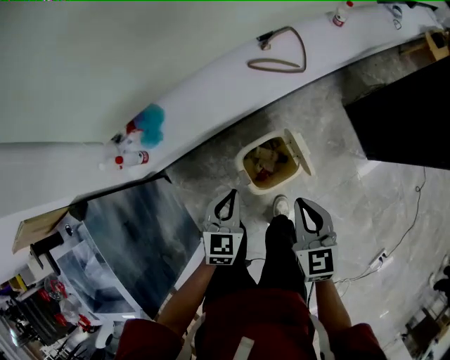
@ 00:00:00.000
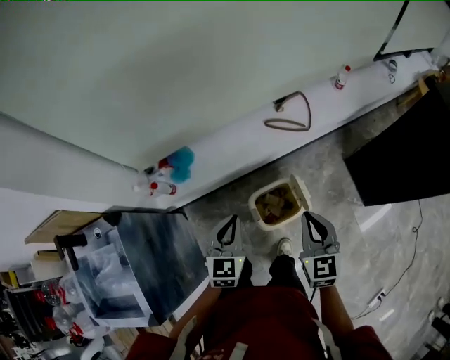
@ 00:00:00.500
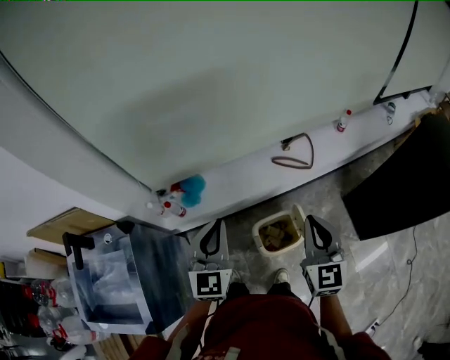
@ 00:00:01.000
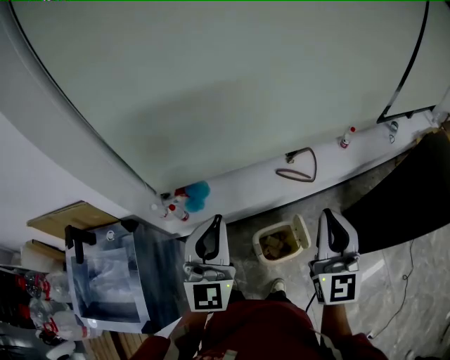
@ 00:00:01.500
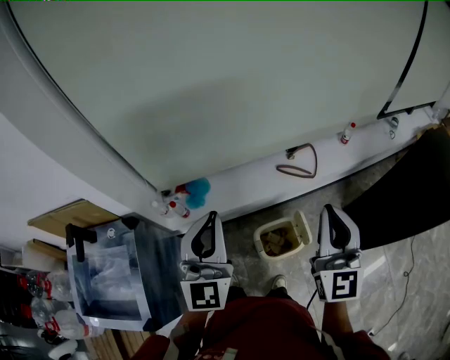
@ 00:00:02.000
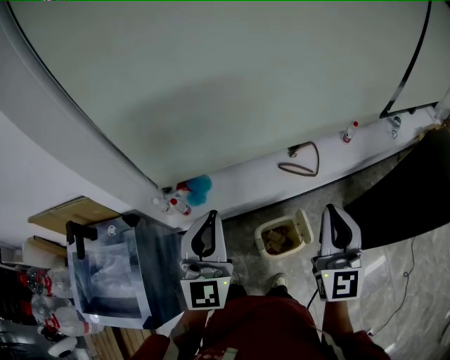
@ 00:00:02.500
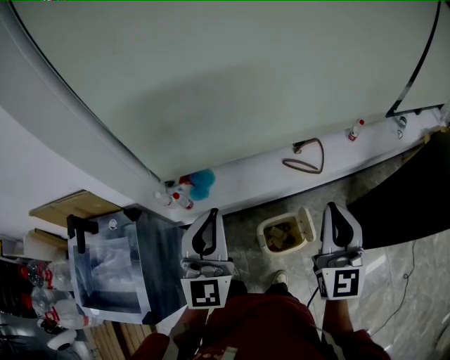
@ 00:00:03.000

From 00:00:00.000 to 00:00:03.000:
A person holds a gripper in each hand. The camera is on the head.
From 00:00:00.000 to 00:00:01.500: The grippers both shift upward by some 40 cm. The right gripper tips its fingers upward by roughly 40 degrees; the left gripper points its fingers approximately 40 degrees further upward.
From 00:00:01.500 to 00:00:03.000: The grippers move only a little.

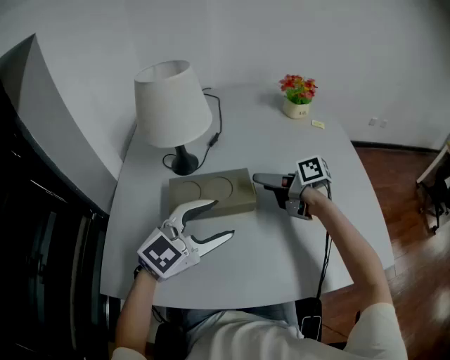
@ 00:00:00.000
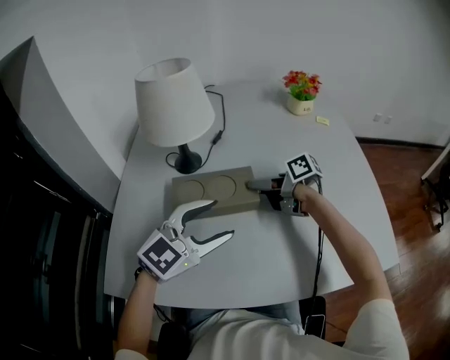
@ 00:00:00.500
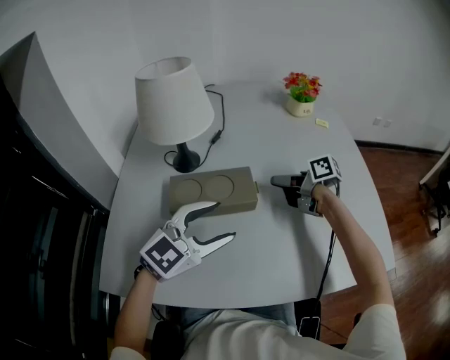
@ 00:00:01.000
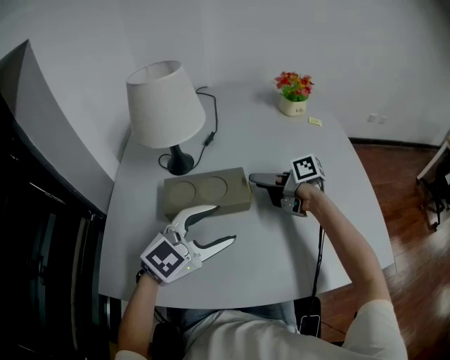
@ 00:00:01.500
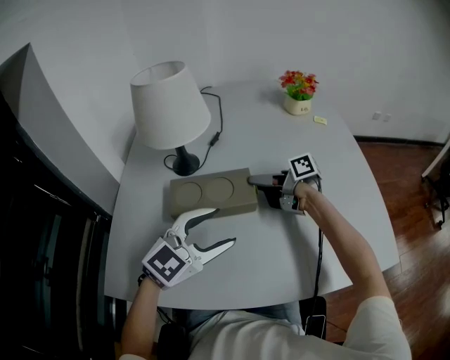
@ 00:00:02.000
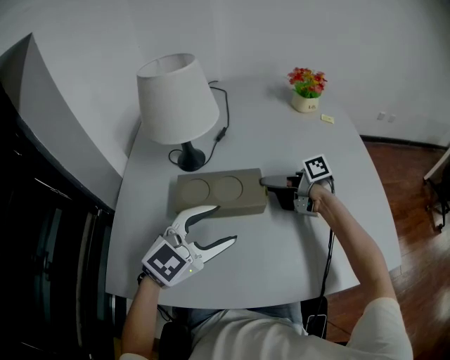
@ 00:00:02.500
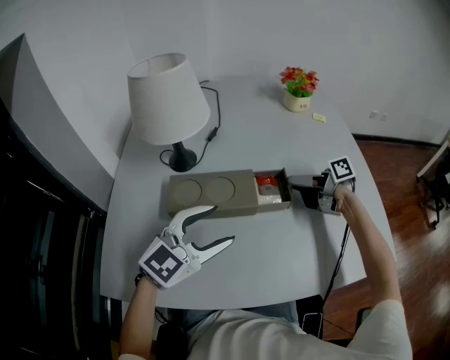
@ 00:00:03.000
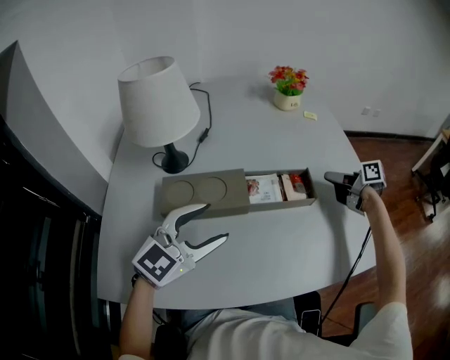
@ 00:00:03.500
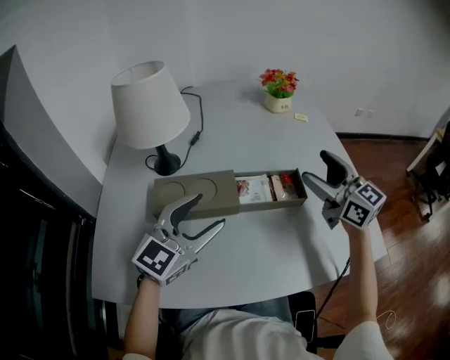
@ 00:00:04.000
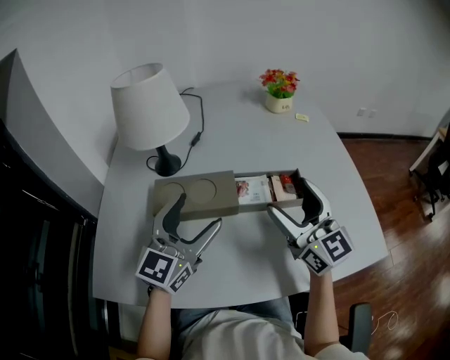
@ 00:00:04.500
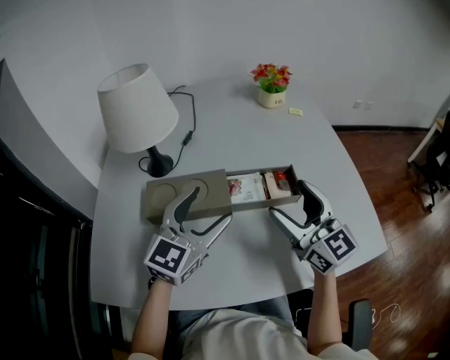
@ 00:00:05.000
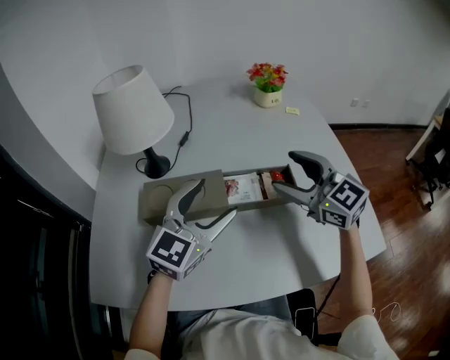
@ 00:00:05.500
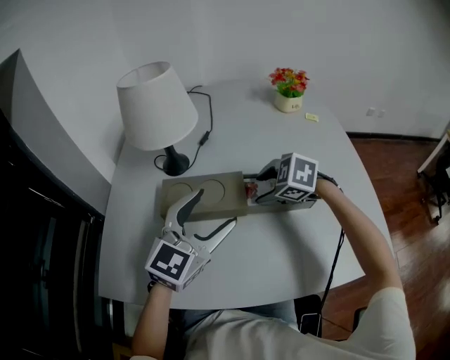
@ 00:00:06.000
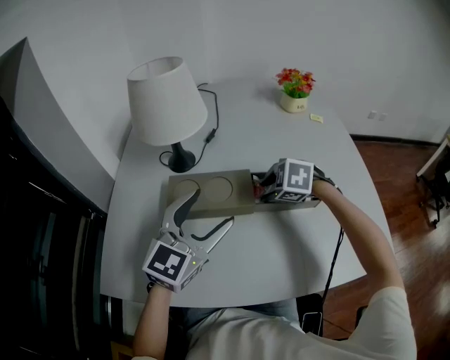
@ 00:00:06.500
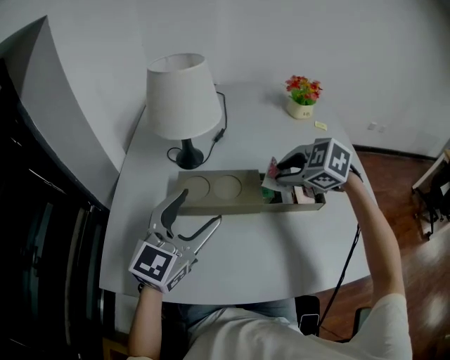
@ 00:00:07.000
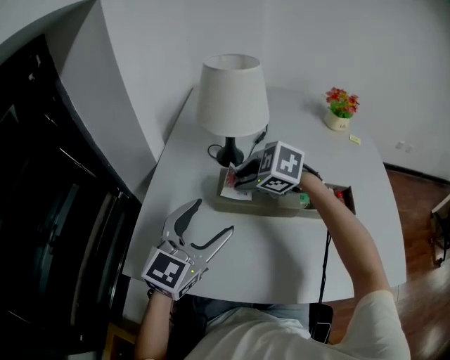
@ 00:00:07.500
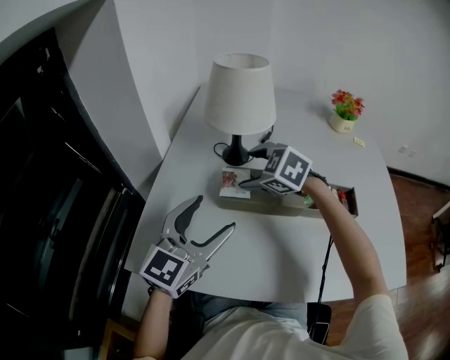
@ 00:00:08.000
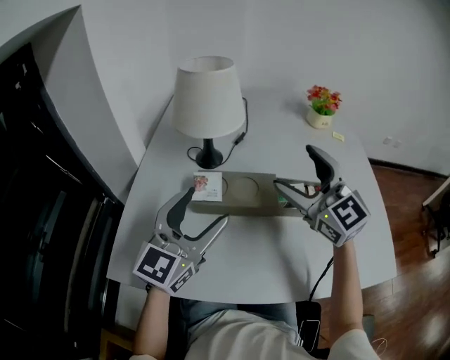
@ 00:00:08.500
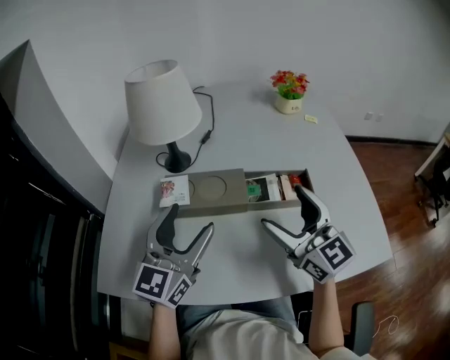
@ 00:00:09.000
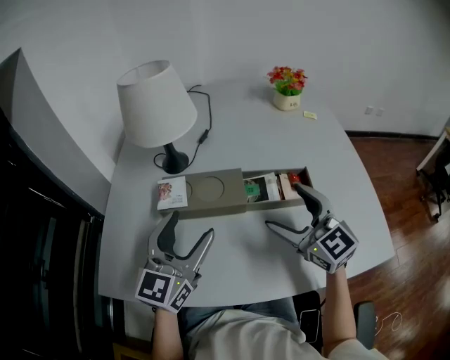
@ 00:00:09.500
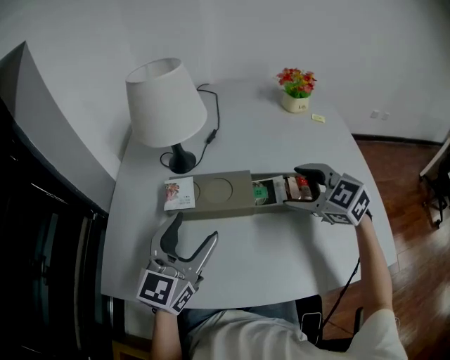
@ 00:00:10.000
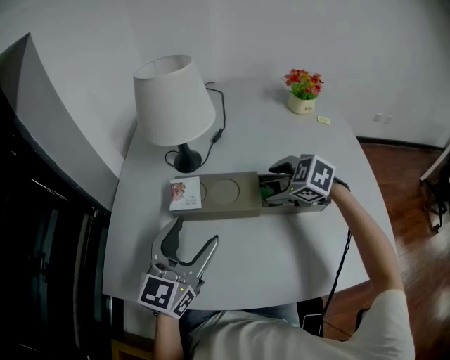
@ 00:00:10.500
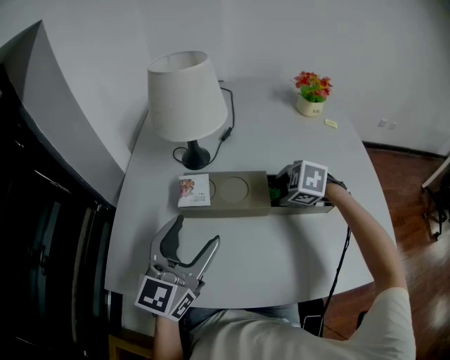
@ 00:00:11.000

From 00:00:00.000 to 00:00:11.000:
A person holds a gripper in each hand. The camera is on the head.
From 00:00:00.000 to 00:00:02.000: The right gripper closes.
From 00:00:02.000 to 00:00:03.500: The right gripper moves to the right, approximately 30 cm, and rotates roughly 30 degrees.
From 00:00:03.500 to 00:00:05.500: The left gripper travels to the right by approximately 5 cm; the right gripper goes roughly 20 cm to the left, upward and backward, rotates around the line of its fingers by approximately 70 degrees, counterclockwise from behind, and opens up.
From 00:00:05.500 to 00:00:07.500: The left gripper changes place by about 20 cm, while the right gripper moves approximately 30 cm, angles its fingers downward, by some 40 degrees, and closes its fingers.
From 00:00:07.500 to 00:00:09.000: The right gripper travels to the right, backward and upward by some 25 cm, points its fingers some 60 degrees further upward, and opens; the left gripper travels to the right by about 10 cm.
From 00:00:09.000 to 00:00:11.000: The right gripper travels downward and forward by roughly 20 cm, tips its fingers downward by roughly 70 degrees, and closes.

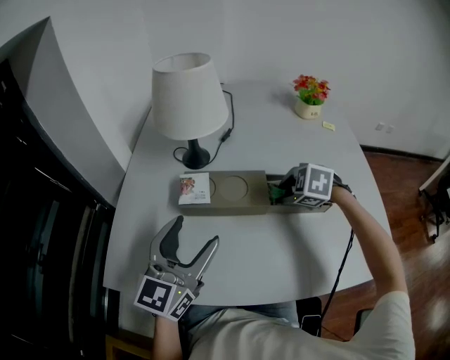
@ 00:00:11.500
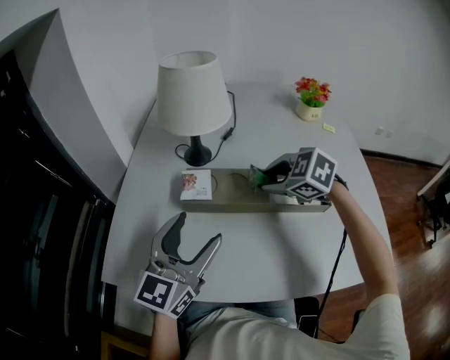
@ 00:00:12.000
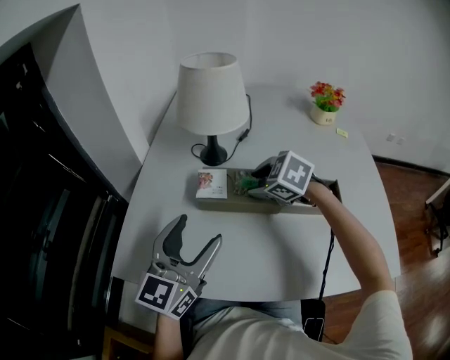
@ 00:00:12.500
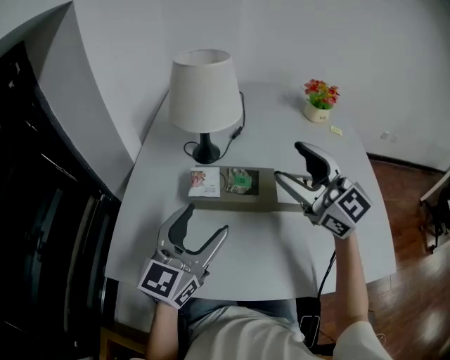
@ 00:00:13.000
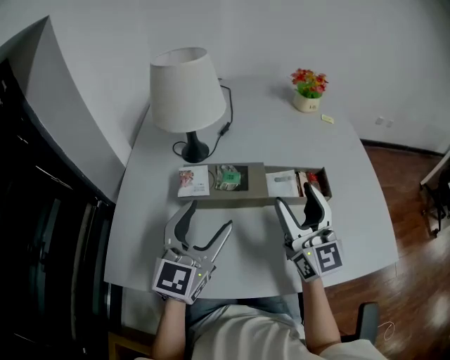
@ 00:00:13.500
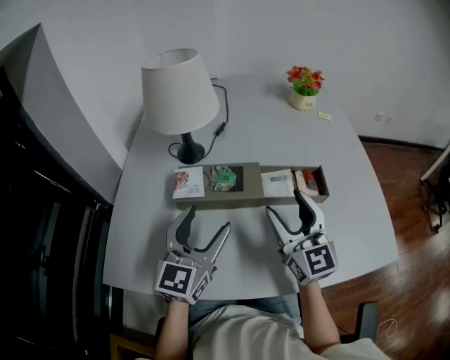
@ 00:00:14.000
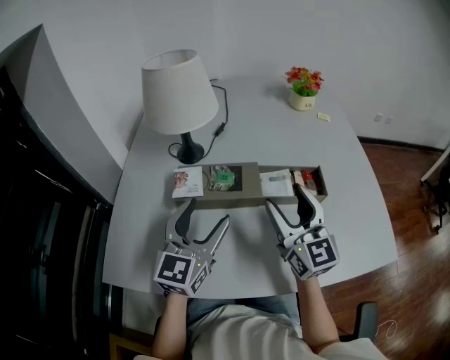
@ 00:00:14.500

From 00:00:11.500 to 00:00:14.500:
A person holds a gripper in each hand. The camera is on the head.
From 00:00:11.500 to 00:00:13.000: The right gripper goes approximately 20 cm upward, tips its fingers upward by about 70 degrees, and opens up.
From 00:00:13.000 to 00:00:14.500: The left gripper moves roughly 5 cm; the right gripper shifts roughly 10 cm downward and to the right, and turns by some 30 degrees.

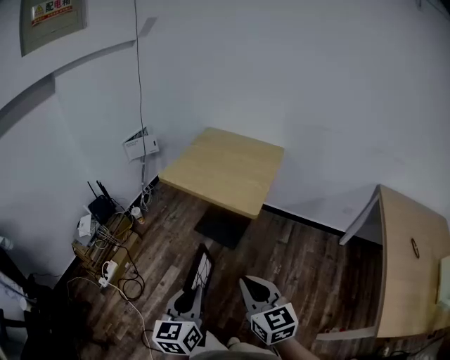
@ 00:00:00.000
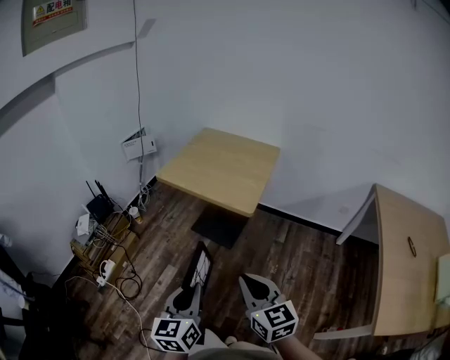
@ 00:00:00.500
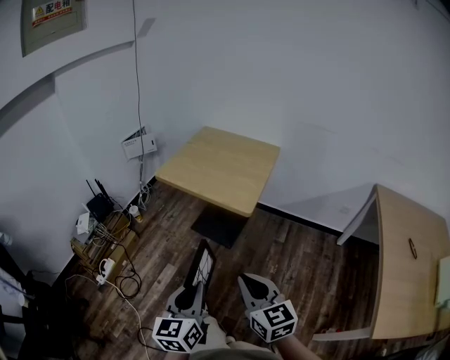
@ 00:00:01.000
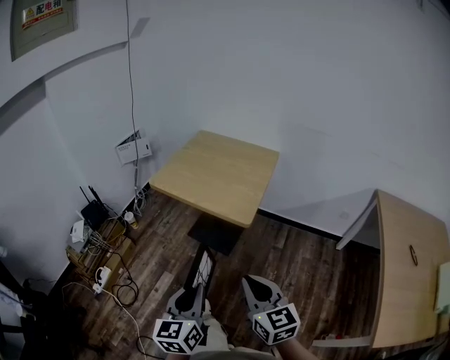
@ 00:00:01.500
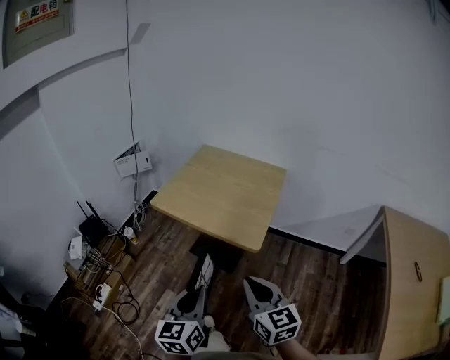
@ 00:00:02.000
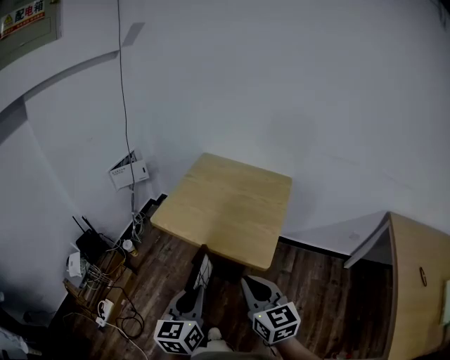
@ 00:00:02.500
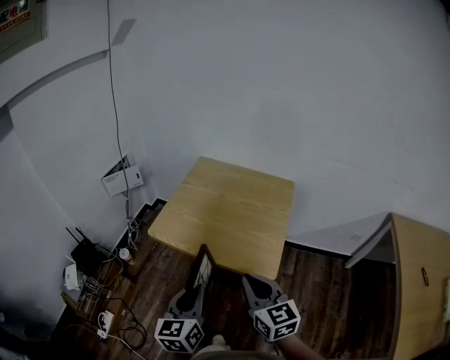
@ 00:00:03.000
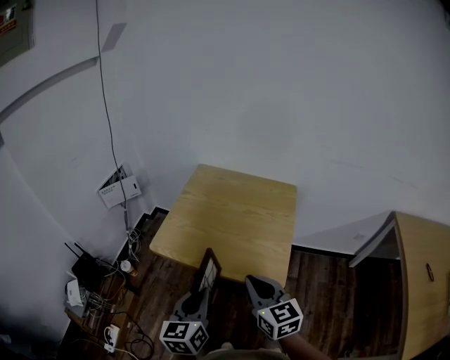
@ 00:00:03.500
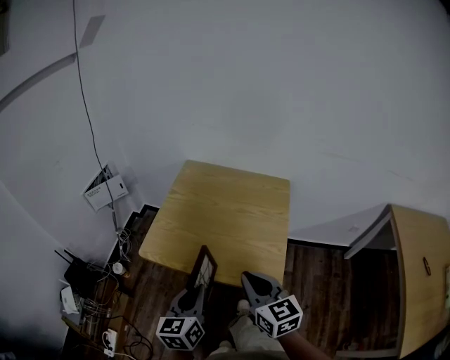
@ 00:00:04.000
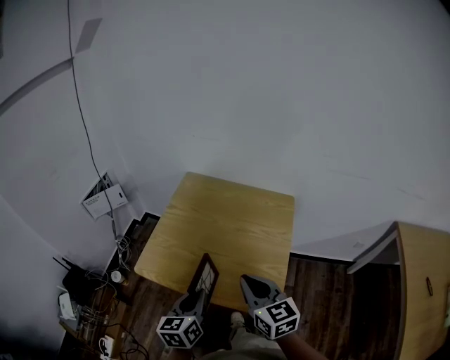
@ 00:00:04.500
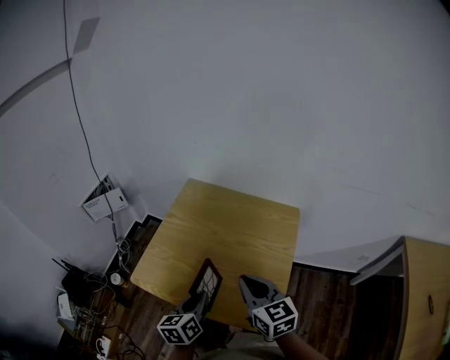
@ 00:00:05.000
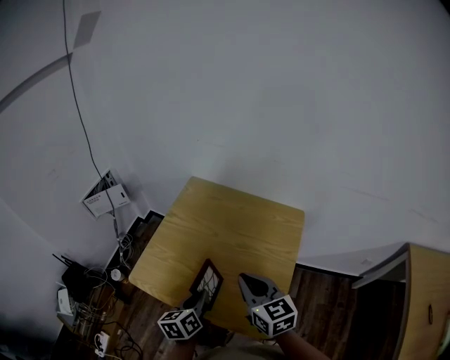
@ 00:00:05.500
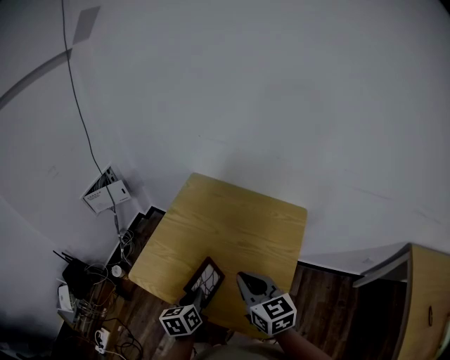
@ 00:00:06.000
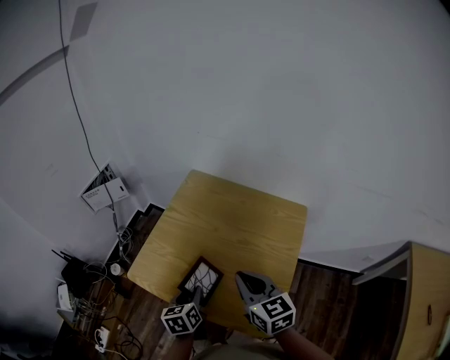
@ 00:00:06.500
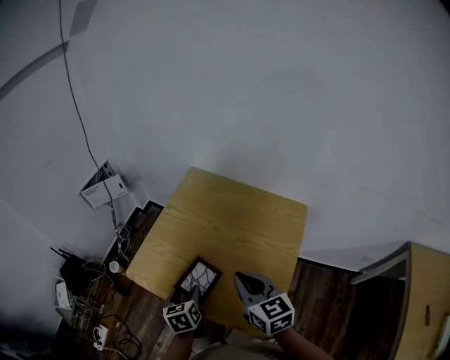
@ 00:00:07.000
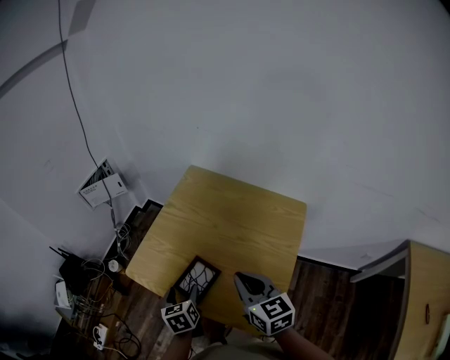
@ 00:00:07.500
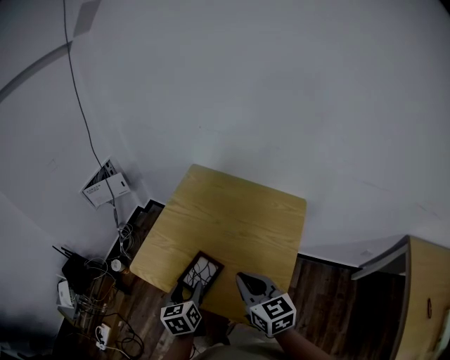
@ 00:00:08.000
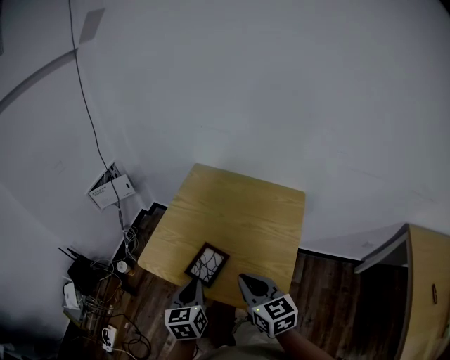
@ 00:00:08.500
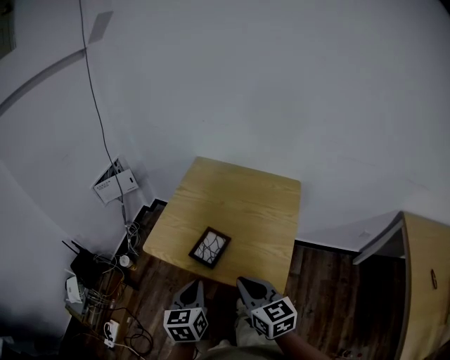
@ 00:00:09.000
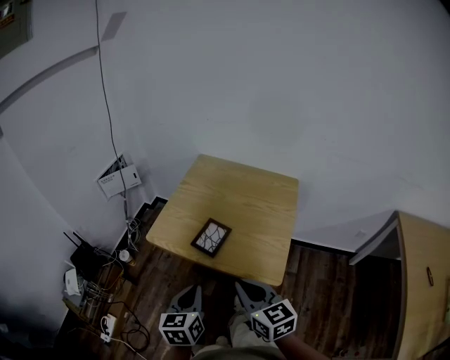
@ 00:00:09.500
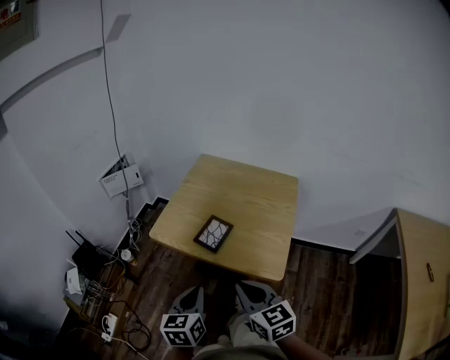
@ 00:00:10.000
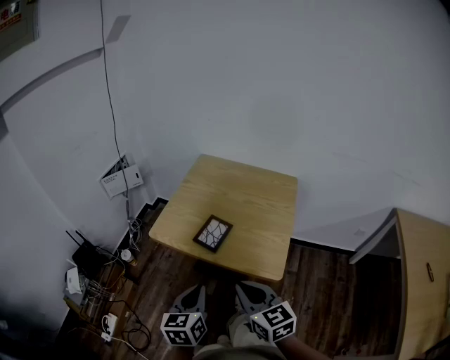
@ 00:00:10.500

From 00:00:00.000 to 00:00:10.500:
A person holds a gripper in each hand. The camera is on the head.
From 00:00:00.000 to 00:00:02.000: The two grippers go about 15 cm forward.
From 00:00:02.000 to 00:00:04.000: The two grippers go some 25 cm forward.
From 00:00:04.000 to 00:00:06.500: The right gripper heads forward, covering about 20 cm. The left gripper shifts approximately 20 cm forward and downward, and changes its angle by approximately 30 degrees.
From 00:00:06.500 to 00:00:08.500: The left gripper travels upward and backward by roughly 10 cm, and opens, then closes once more. Meanwhile the right gripper heads backward, covering some 10 cm.
From 00:00:08.500 to 00:00:10.500: The grippers both shift backward by some 15 cm.
